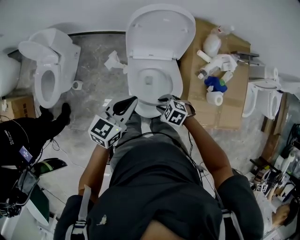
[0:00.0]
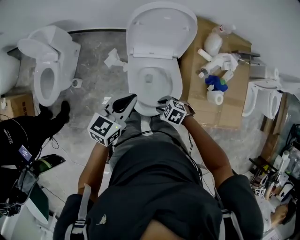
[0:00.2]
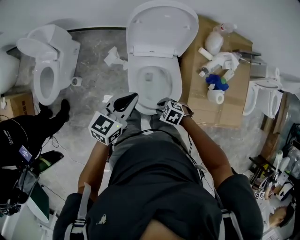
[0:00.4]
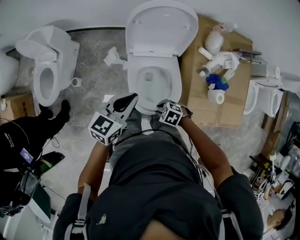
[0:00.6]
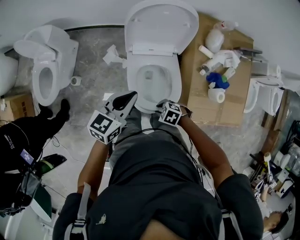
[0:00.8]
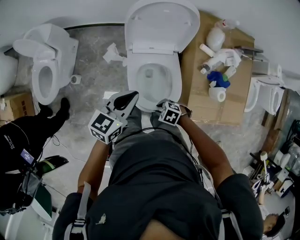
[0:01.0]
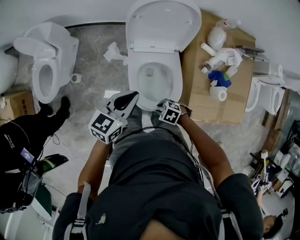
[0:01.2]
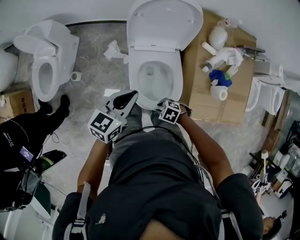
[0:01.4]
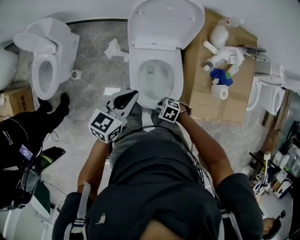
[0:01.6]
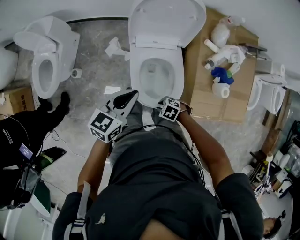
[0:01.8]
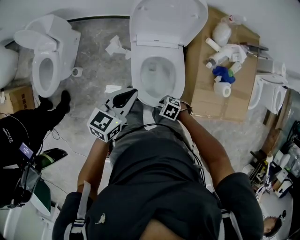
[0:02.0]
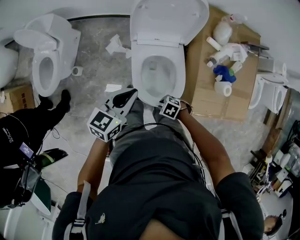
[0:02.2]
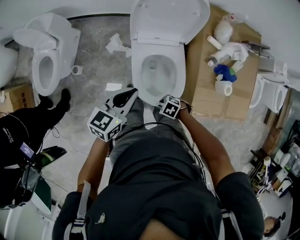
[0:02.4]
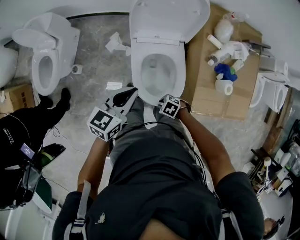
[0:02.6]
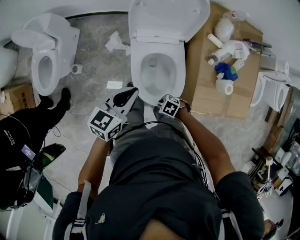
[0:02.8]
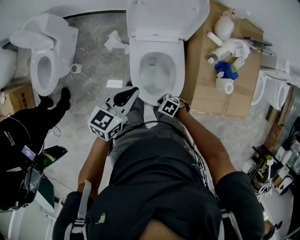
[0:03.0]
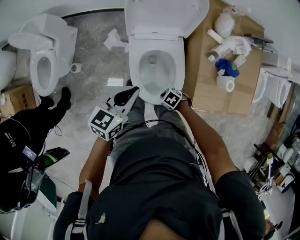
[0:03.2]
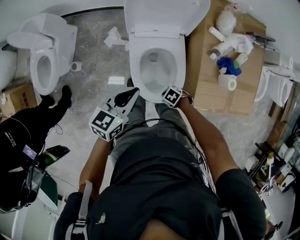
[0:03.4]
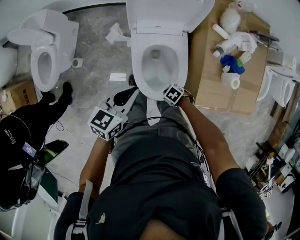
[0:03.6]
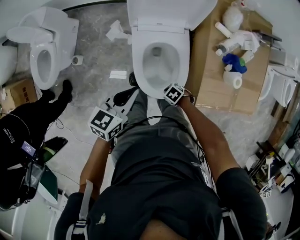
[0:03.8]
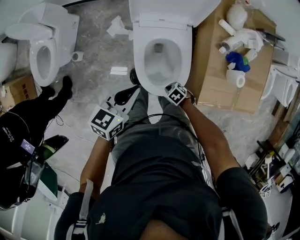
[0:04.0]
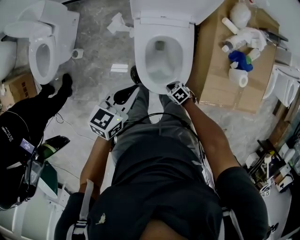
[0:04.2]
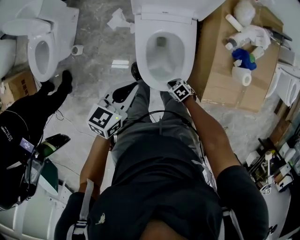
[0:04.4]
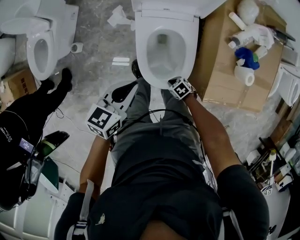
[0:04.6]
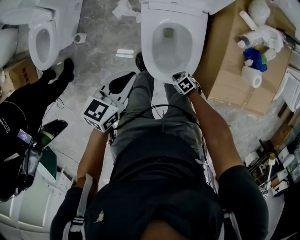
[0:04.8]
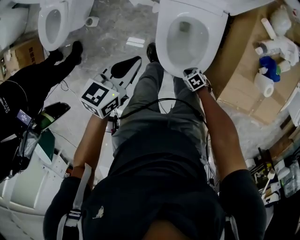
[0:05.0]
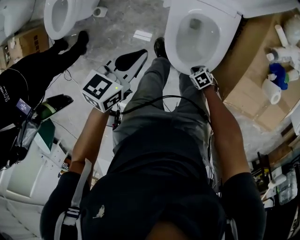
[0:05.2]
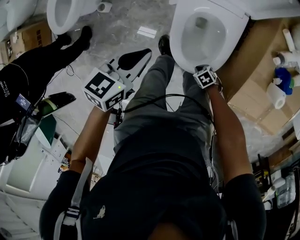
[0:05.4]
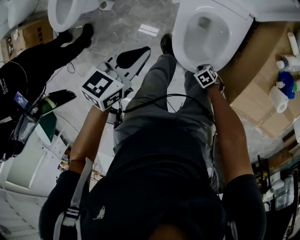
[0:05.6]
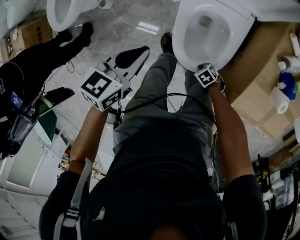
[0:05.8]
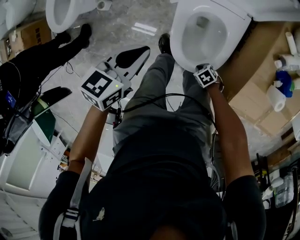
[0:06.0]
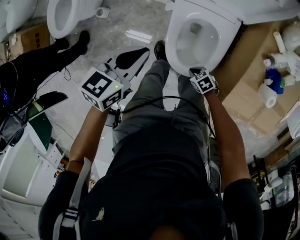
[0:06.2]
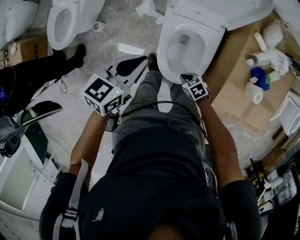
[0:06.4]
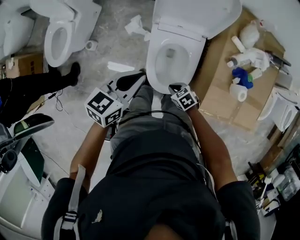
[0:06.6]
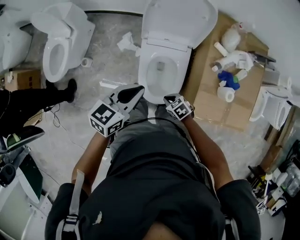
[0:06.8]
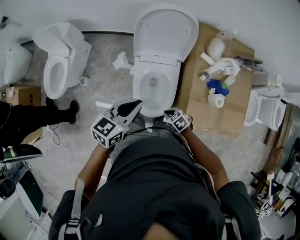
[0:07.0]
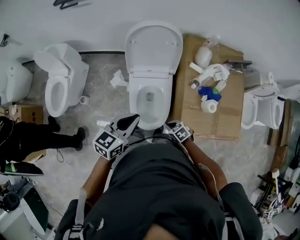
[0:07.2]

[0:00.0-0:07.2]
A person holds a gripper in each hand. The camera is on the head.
0:00.0 to 0:01.4: The right gripper heads downward, covering approximately 10 cm.
0:01.4 to 0:02.8: The right gripper shifts by about 5 cm.
0:02.8 to 0:04.4: The right gripper travels downward by some 10 cm, and swivels about 20 degrees. Meanwhile the left gripper travels downward by approximately 5 cm.
0:04.4 to 0:05.8: The right gripper heads downward, covering some 10 cm, while the left gripper moves about 10 cm.
0:05.8 to 0:07.2: Both grippers travel together upward, some 25 cm. The right gripper changes its angle by some 30 degrees.

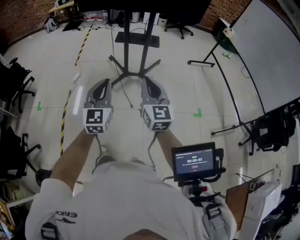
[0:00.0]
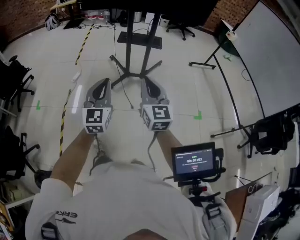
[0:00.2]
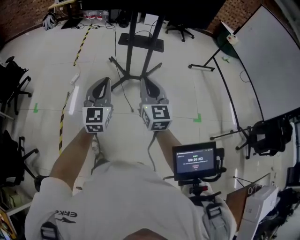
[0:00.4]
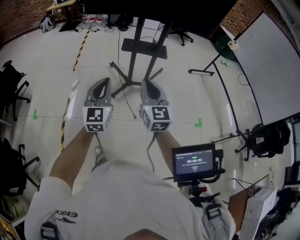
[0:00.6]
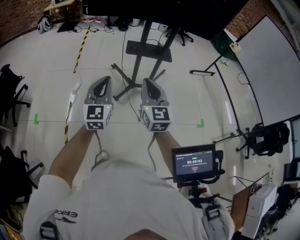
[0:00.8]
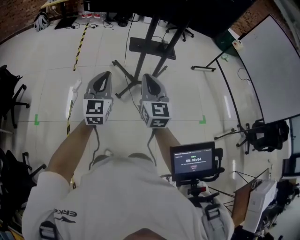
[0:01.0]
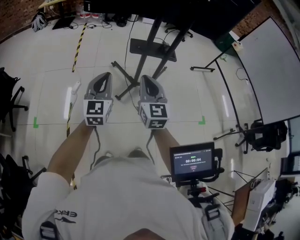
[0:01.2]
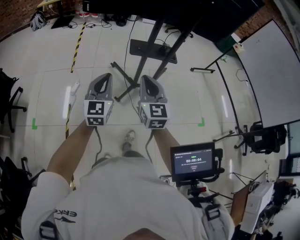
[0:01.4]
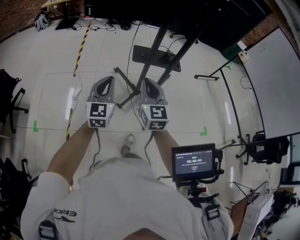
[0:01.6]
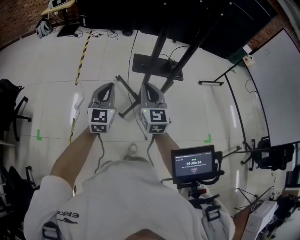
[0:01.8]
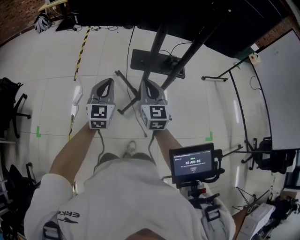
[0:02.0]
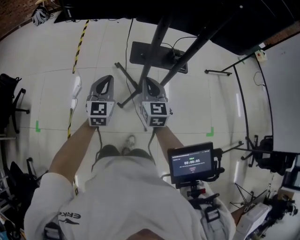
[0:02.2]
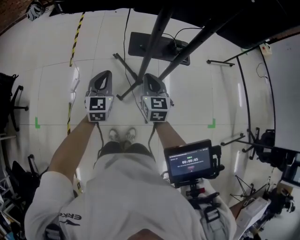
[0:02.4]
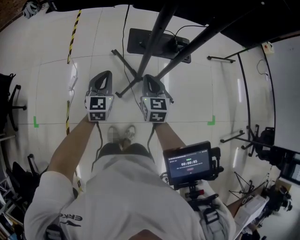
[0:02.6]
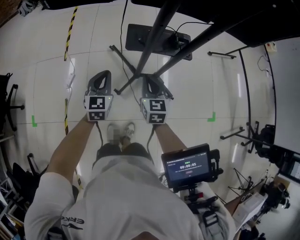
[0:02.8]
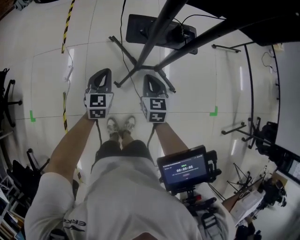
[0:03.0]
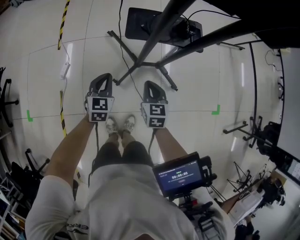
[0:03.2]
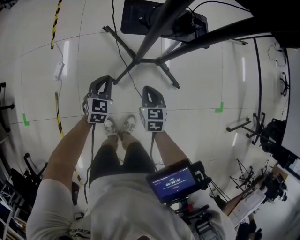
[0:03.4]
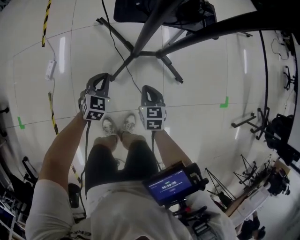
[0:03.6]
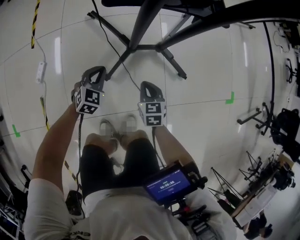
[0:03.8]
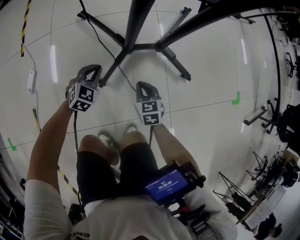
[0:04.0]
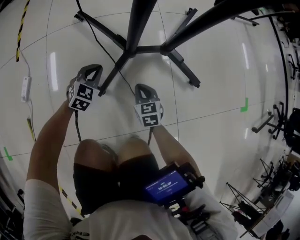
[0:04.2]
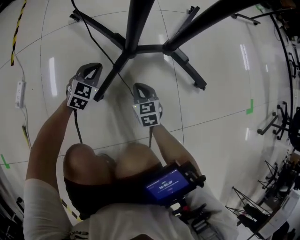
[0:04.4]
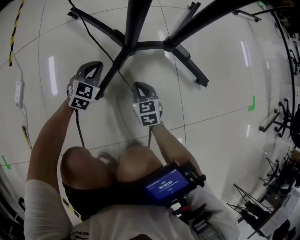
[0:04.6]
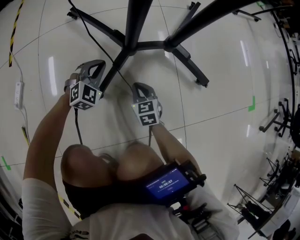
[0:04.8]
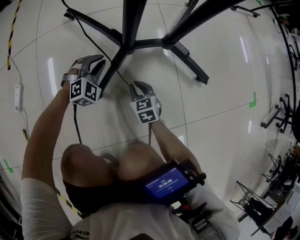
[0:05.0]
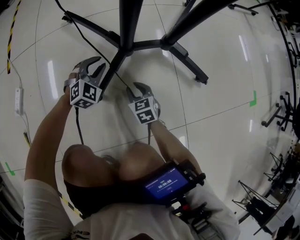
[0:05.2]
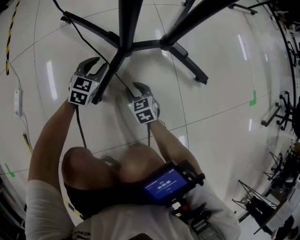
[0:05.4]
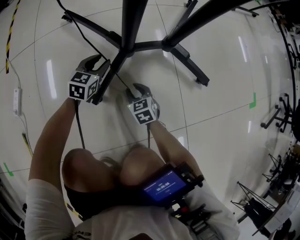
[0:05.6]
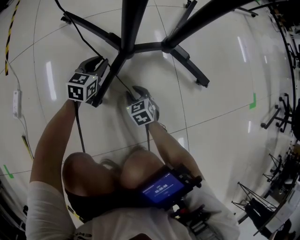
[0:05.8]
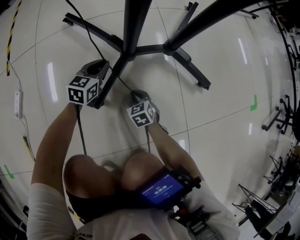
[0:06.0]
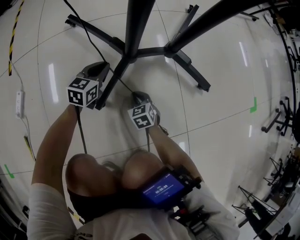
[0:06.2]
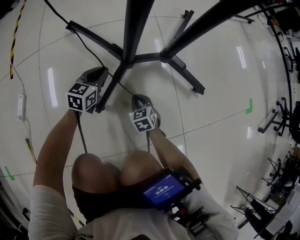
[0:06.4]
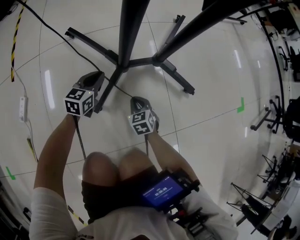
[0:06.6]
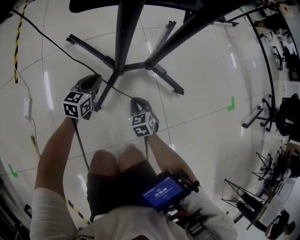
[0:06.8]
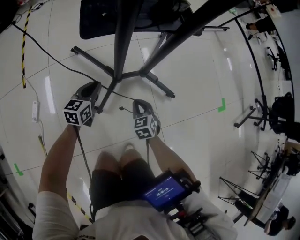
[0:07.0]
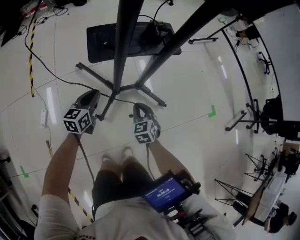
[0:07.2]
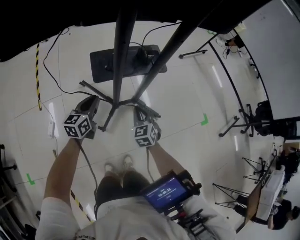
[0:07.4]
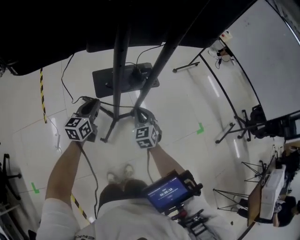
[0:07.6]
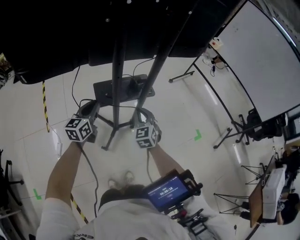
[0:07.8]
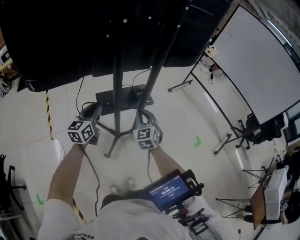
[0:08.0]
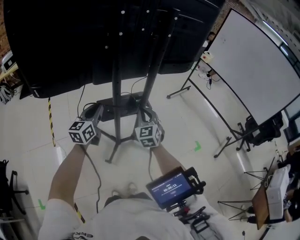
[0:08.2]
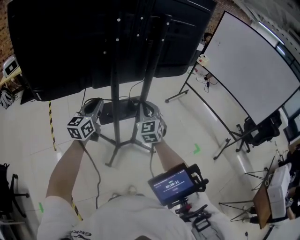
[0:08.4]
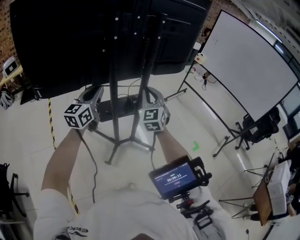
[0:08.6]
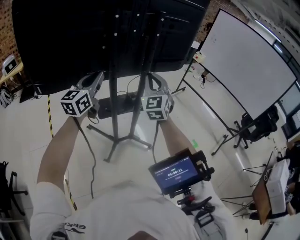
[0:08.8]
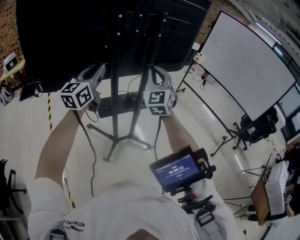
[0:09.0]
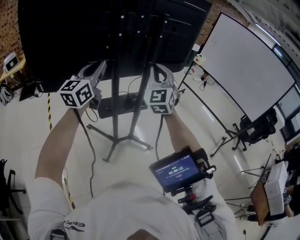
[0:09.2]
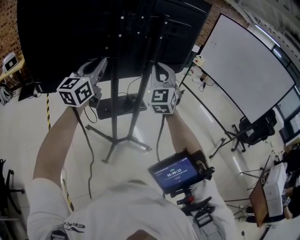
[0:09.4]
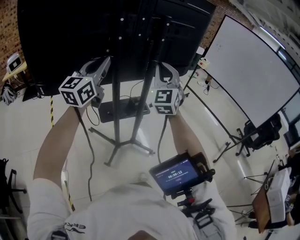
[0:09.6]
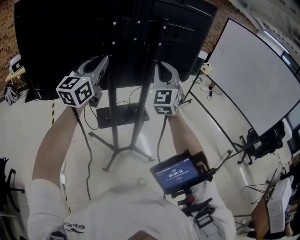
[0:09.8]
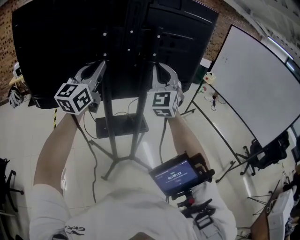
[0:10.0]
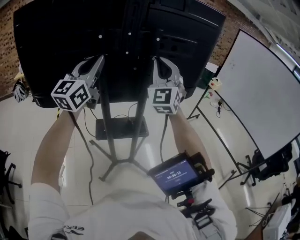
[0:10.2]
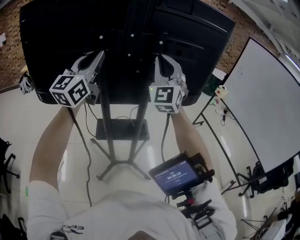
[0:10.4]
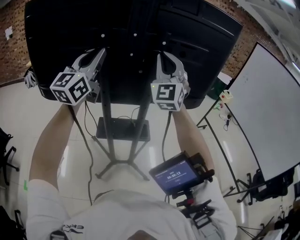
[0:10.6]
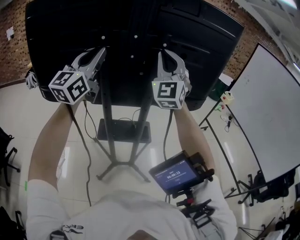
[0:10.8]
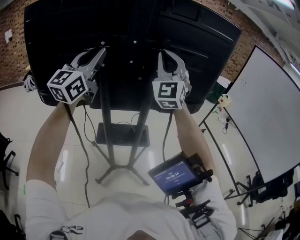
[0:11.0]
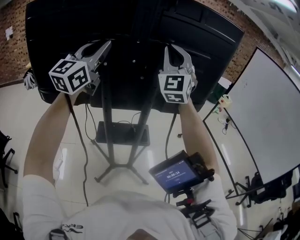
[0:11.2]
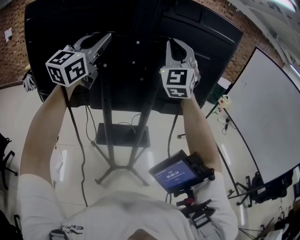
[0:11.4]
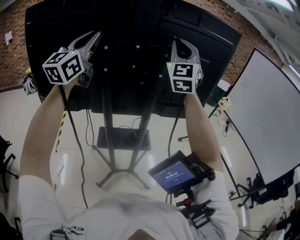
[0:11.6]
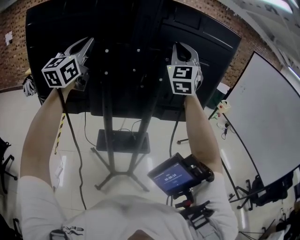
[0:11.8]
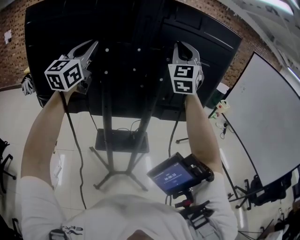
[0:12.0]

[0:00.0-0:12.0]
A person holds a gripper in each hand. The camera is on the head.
0:00.0 to 0:01.6: The pair of grippers is taken forward and to the left, some 40 cm.
0:01.6 to 0:03.0: The left gripper is displaced forward and downward by about 30 cm, and turns by approximately 20 degrees, while the right gripper shifts roughly 35 cm downward and forward, and rotates about 30 degrees.
0:03.0 to 0:04.4: The grippers both shift downward by roughly 70 cm. The left gripper turns by approximately 30 degrees.
0:04.4 to 0:06.0: The right gripper goes some 10 cm downward, and opens, then closes once more; the left gripper ends up approximately 5 cm from where it was, swivels some 30 degrees, and opens, then closes once more.
0:06.0 to 0:07.6: The grippers both shift upward by approximately 70 cm. The right gripper swivels approximately 30 degrees, while the left gripper rotates roughly 20 degrees.
0:07.6 to 0:09.0: The two grippers go about 40 cm upward. The right gripper points its fingers some 40 degrees further upward. Meanwhile the left gripper turns by approximately 30 degrees.
0:09.0 to 0:10.4: The right gripper travels forward and upward by approximately 20 cm, and turns by about 20 degrees. The left gripper shifts some 20 cm upward, forward and to the right, and changes its angle by roughly 20 degrees.
0:10.4 to 0:12.0: The right gripper moves upward and forward, about 15 cm. Meanwhile the left gripper moves to the left, upward and forward, approximately 10 cm.

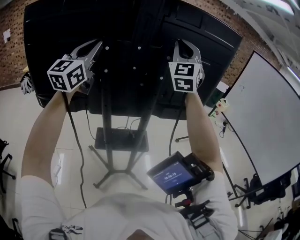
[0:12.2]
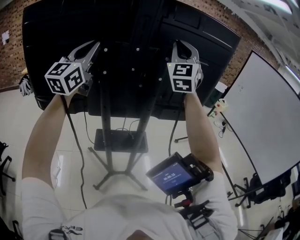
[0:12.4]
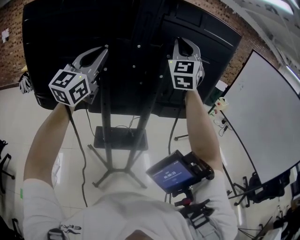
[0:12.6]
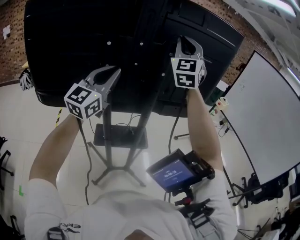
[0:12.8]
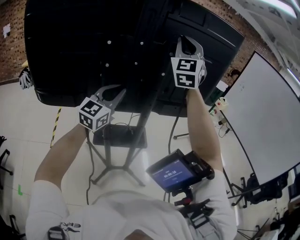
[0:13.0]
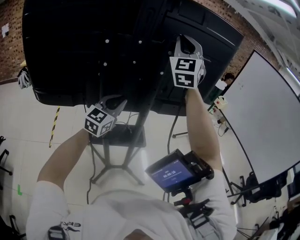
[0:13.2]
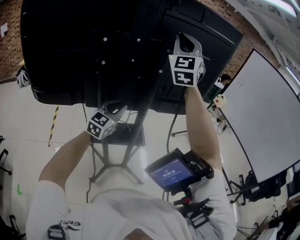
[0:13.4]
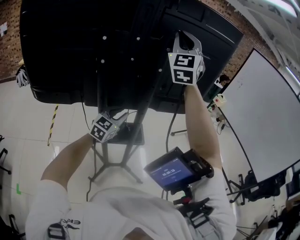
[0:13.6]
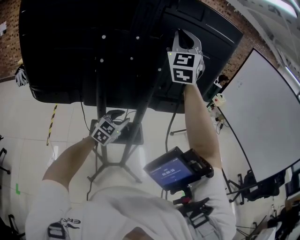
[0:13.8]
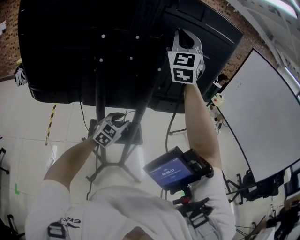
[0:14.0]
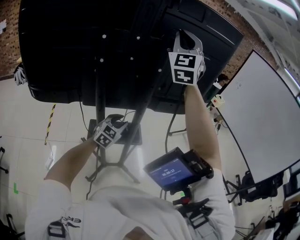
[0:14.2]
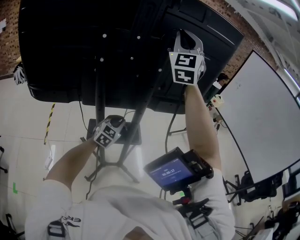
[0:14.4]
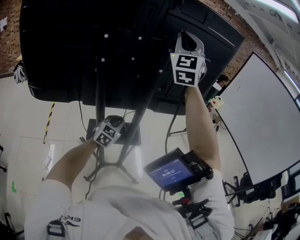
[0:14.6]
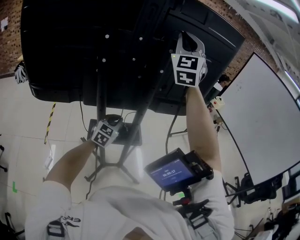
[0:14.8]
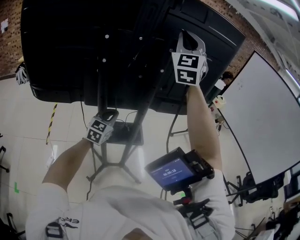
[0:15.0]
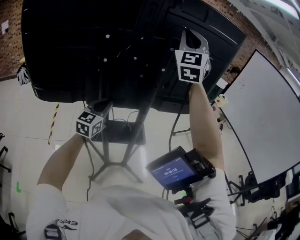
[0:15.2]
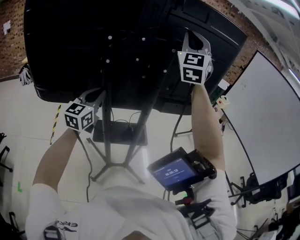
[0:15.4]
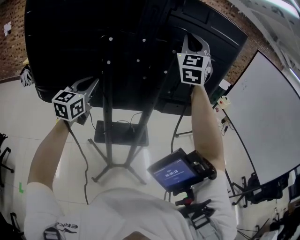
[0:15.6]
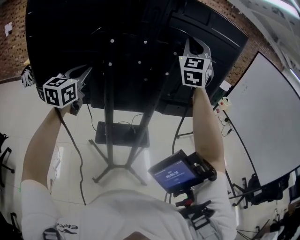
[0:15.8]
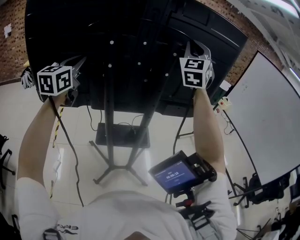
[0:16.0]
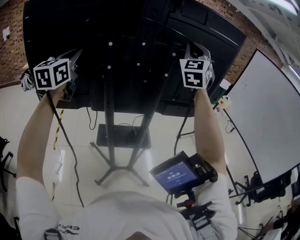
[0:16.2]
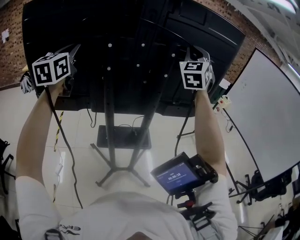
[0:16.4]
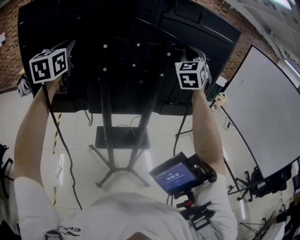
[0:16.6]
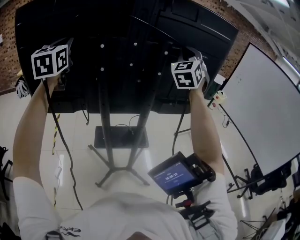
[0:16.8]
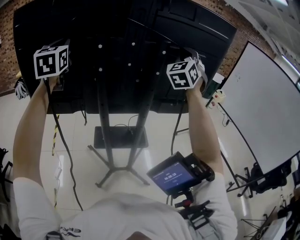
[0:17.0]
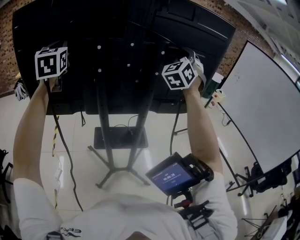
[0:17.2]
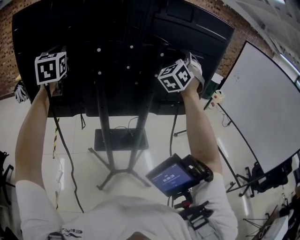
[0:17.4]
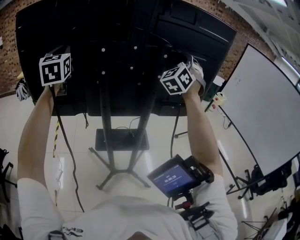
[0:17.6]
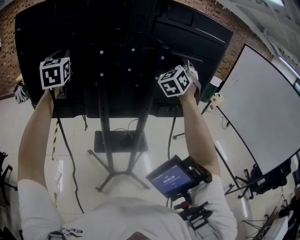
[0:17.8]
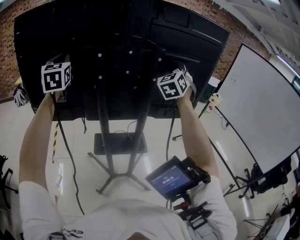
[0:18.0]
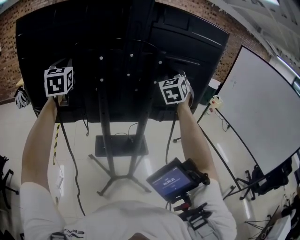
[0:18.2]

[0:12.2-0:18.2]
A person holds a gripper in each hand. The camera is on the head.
0:12.2 to 0:13.8: The left gripper goes some 40 cm downward and to the right, tilts its fingers about 40 degrees downward, and opens up.
0:13.8 to 0:15.2: The left gripper heads to the left and upward, covering about 15 cm, turns by approximately 20 degrees, and closes up.
0:15.2 to 0:16.6: The right gripper is displaced downward by about 5 cm. The left gripper is displaced upward and to the left by about 35 cm, and swivels about 20 degrees.
0:16.6 to 0:18.2: The right gripper moves downward, roughly 10 cm.
